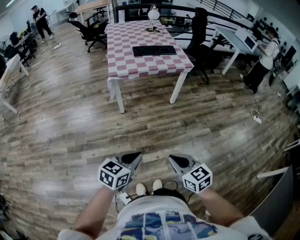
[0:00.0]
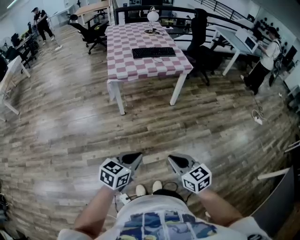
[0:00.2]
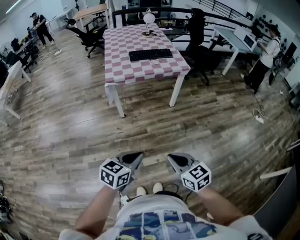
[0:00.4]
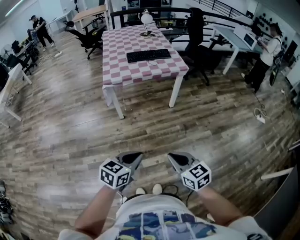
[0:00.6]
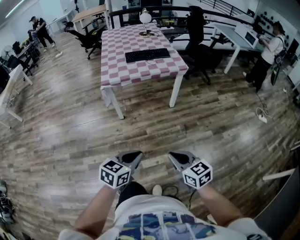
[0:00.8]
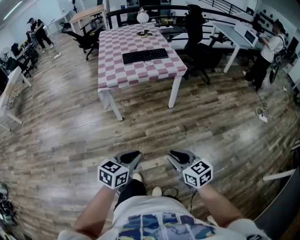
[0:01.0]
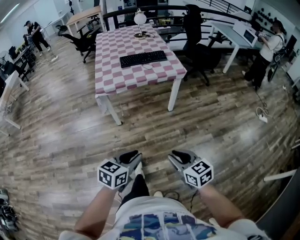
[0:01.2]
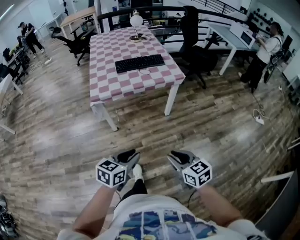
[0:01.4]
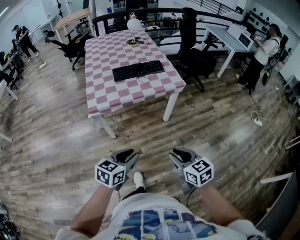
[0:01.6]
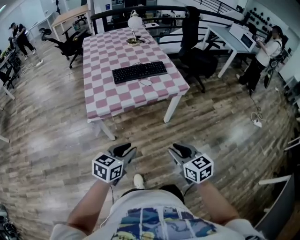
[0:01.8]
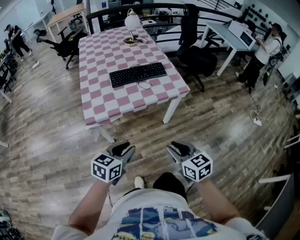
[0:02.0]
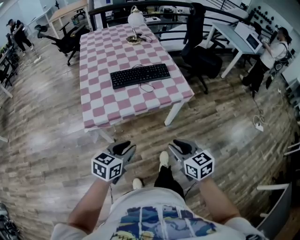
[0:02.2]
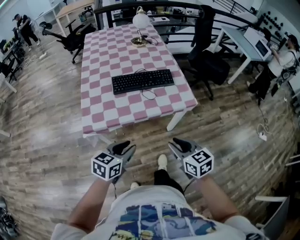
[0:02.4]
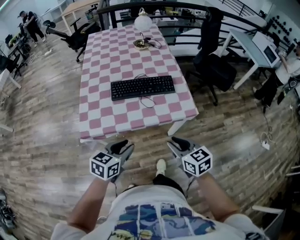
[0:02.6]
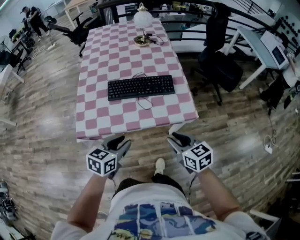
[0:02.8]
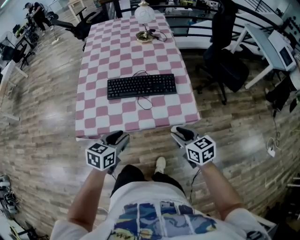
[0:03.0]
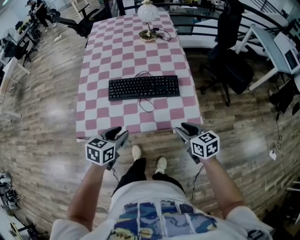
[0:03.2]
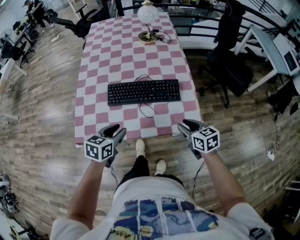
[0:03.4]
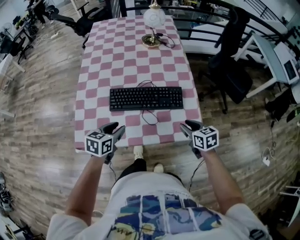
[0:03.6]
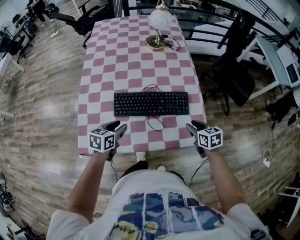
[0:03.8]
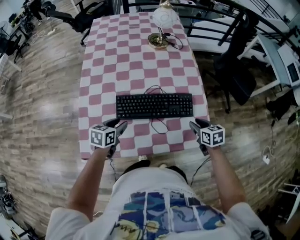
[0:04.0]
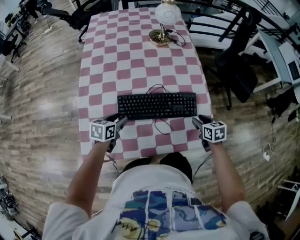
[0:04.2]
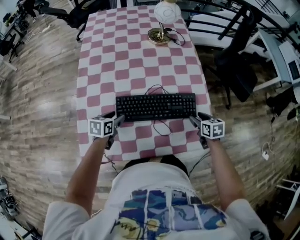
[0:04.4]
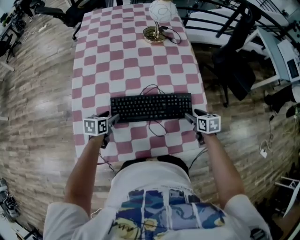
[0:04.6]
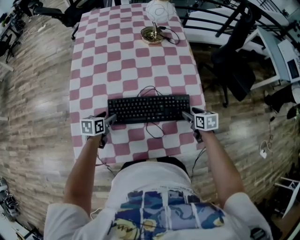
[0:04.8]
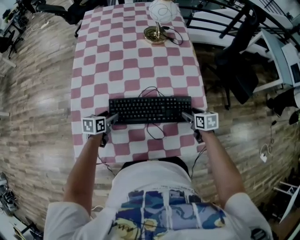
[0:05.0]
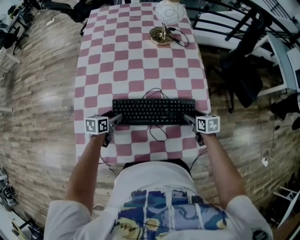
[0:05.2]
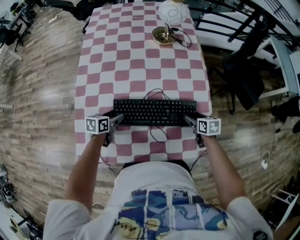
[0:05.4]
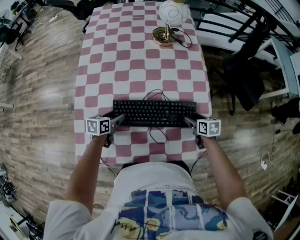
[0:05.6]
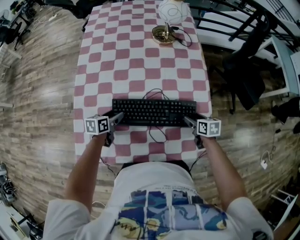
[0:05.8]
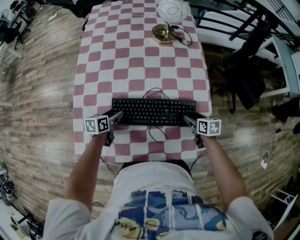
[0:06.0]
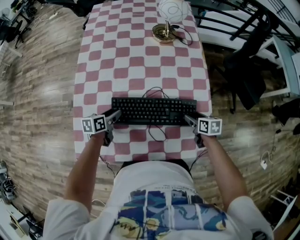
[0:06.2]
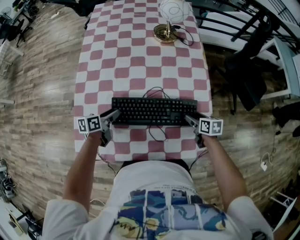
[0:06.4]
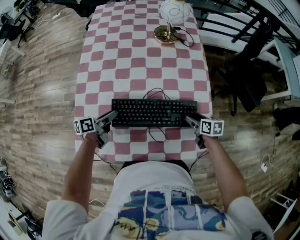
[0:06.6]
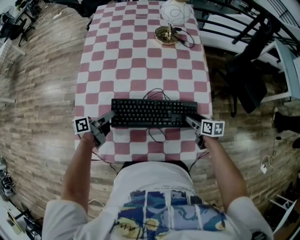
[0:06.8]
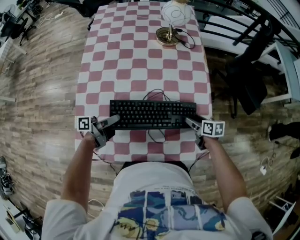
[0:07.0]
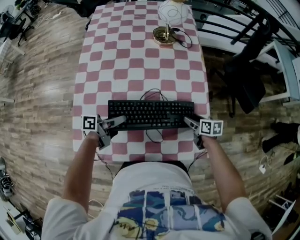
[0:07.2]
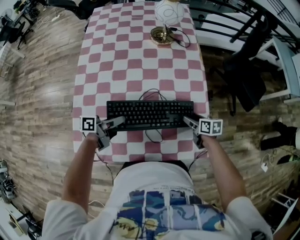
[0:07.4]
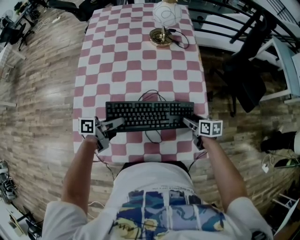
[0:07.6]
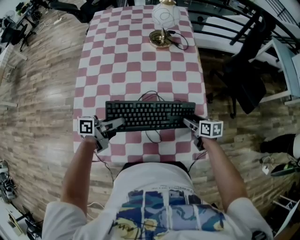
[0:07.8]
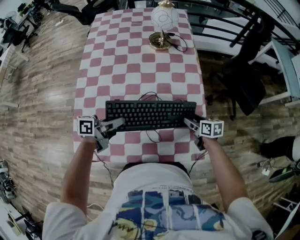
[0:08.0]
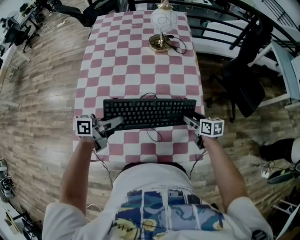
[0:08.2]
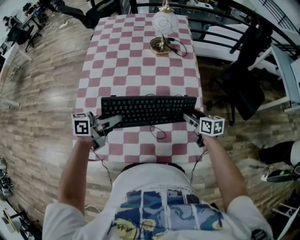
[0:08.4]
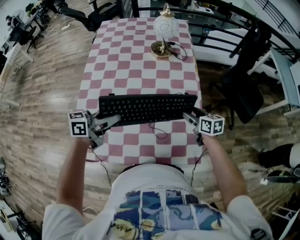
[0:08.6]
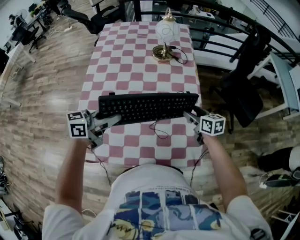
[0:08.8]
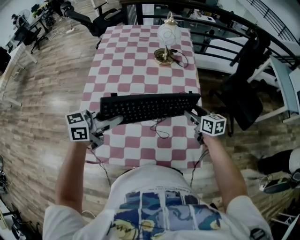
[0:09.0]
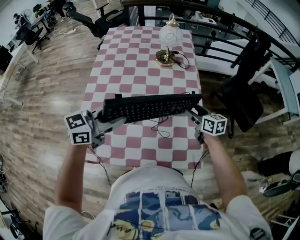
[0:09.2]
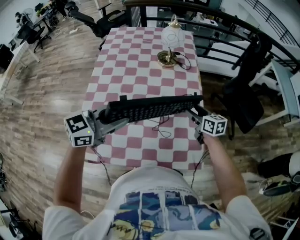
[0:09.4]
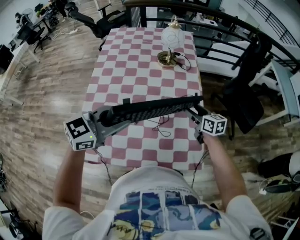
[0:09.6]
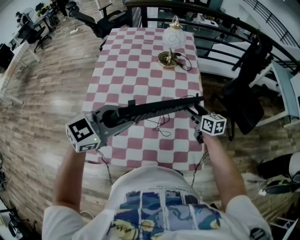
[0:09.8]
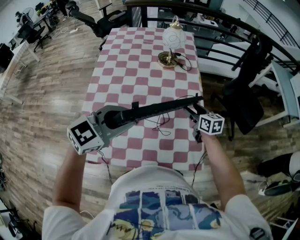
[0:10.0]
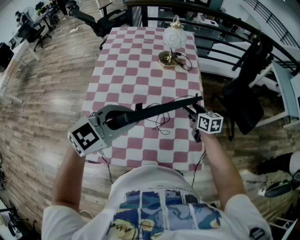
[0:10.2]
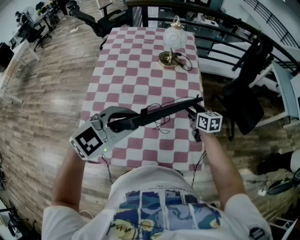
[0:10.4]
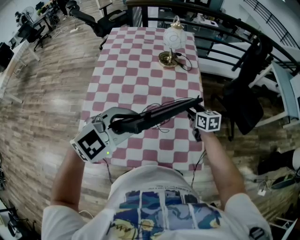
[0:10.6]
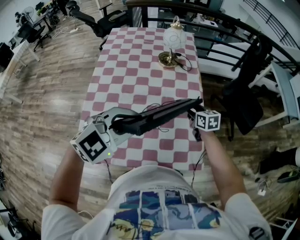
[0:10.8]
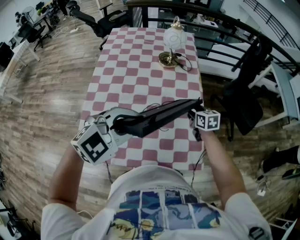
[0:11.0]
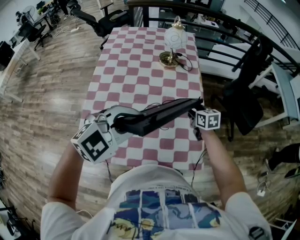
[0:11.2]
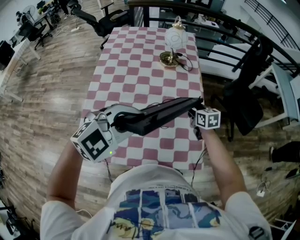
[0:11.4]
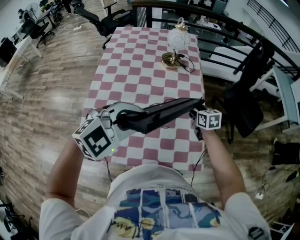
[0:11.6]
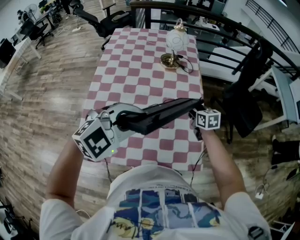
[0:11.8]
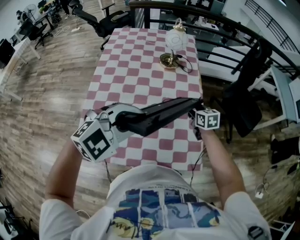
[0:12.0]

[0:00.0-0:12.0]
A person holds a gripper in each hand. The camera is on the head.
0:00.0 to 0:01.6: The grippers both shift forward by approximately 35 cm.
0:01.6 to 0:03.0: Both grippers are carried forward, approximately 50 cm.
0:03.0 to 0:04.4: The right gripper is displaced forward and downward by roughly 30 cm, and swivels roughly 20 degrees; the left gripper travels forward, to the left and downward by some 35 cm.
0:04.4 to 0:06.0: The right gripper is displaced forward by some 5 cm.
0:06.0 to 0:07.6: The left gripper is displaced upward and to the right by approximately 10 cm, rotates about 40 degrees, and closes its fingers.
0:07.6 to 0:09.0: The left gripper moves upward, approximately 20 cm, and rotates around the line of its fingers by roughly 40 degrees, clockwise from behind. Meanwhile the right gripper heads upward and forward, covering roughly 15 cm, and turns by roughly 20 degrees.
0:09.0 to 0:10.4: The left gripper moves upward and to the right, some 10 cm, and rolls clockwise, seen from behind, by about 40 degrees.
0:10.4 to 0:12.0: There are only small adjustments of the grippers.

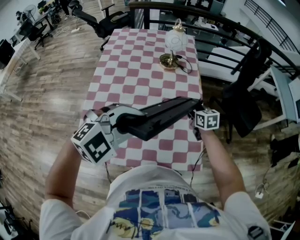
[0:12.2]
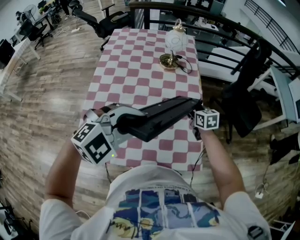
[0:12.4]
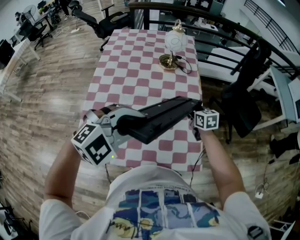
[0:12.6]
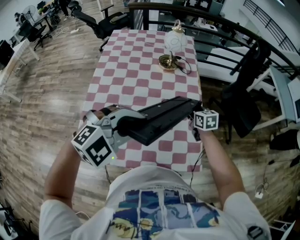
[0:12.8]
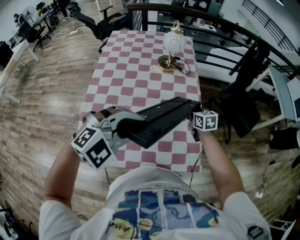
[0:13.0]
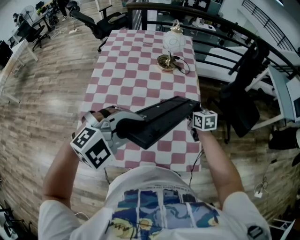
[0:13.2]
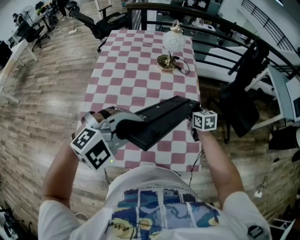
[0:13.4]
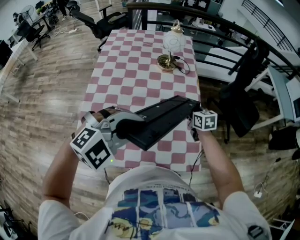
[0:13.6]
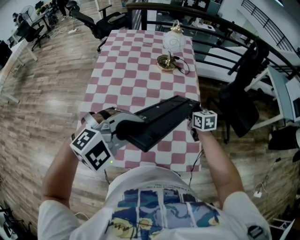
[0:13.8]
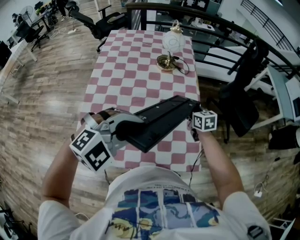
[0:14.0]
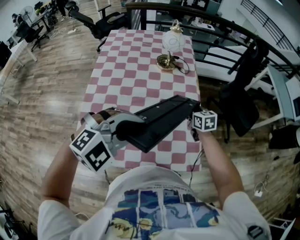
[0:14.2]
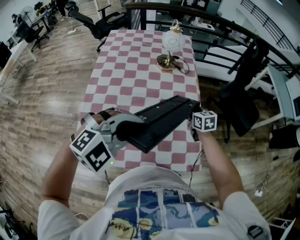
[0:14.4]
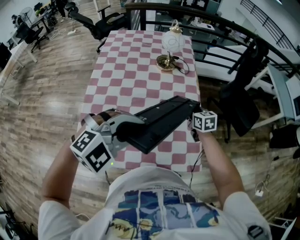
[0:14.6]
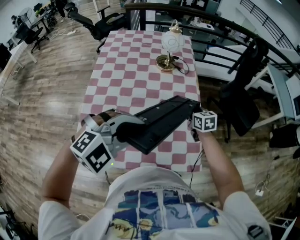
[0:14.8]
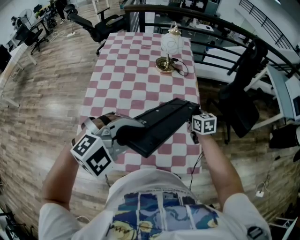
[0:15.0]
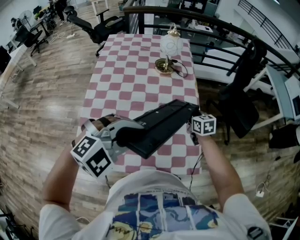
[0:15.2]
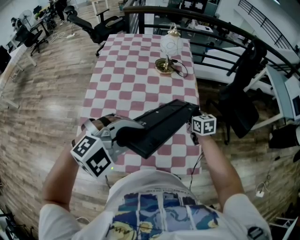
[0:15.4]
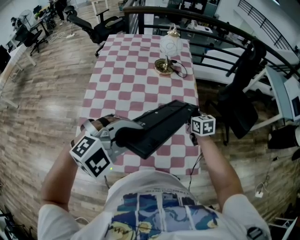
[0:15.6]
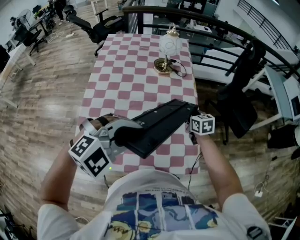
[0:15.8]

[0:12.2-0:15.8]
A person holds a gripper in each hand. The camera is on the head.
0:12.2 to 0:14.0: The grippers make only small movements.
0:14.0 to 0:15.8: Both grippers stay about where they are.

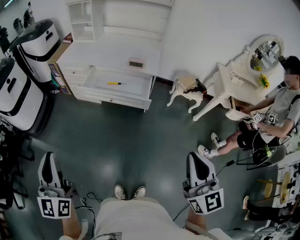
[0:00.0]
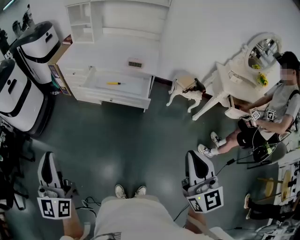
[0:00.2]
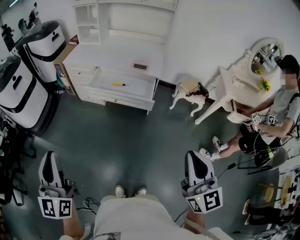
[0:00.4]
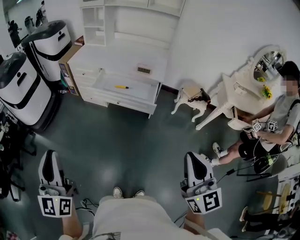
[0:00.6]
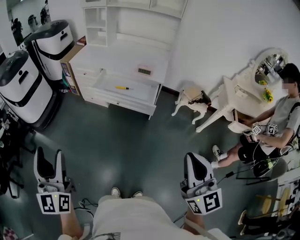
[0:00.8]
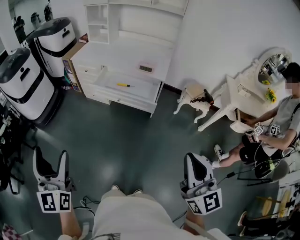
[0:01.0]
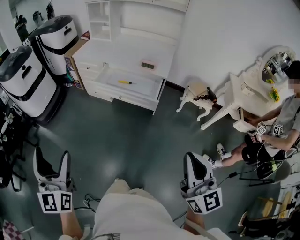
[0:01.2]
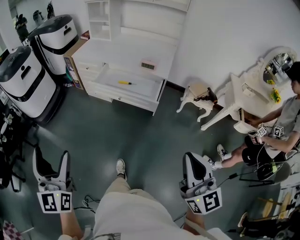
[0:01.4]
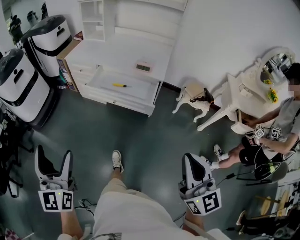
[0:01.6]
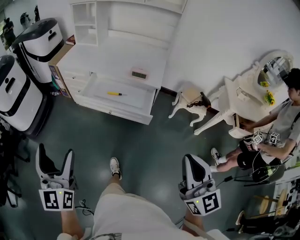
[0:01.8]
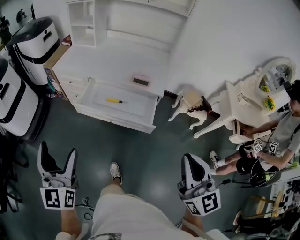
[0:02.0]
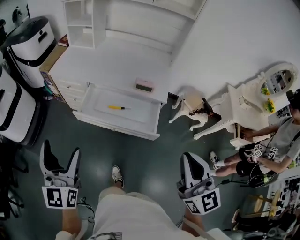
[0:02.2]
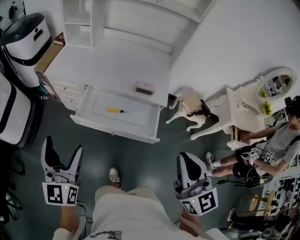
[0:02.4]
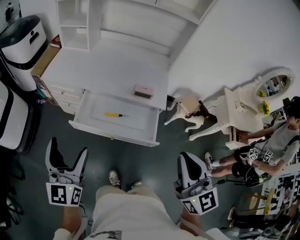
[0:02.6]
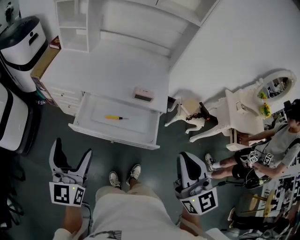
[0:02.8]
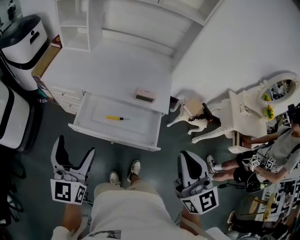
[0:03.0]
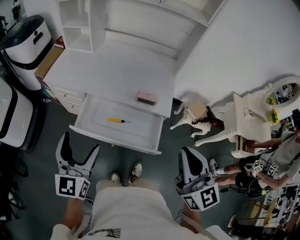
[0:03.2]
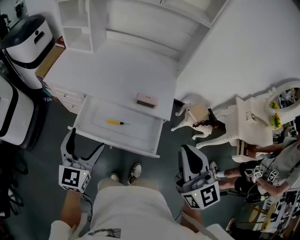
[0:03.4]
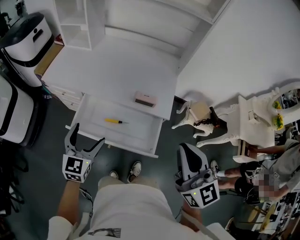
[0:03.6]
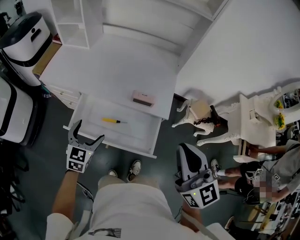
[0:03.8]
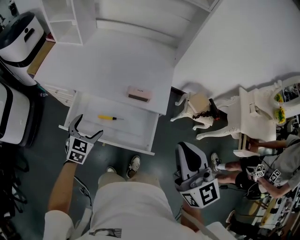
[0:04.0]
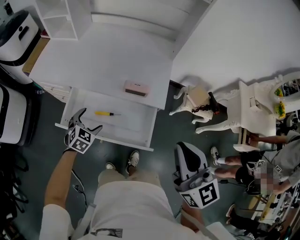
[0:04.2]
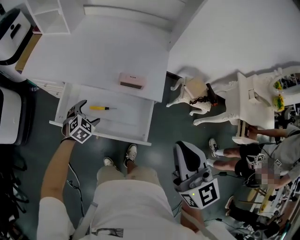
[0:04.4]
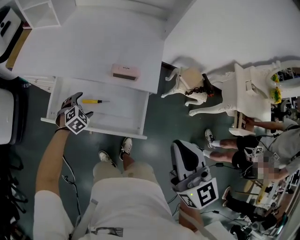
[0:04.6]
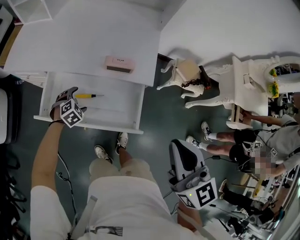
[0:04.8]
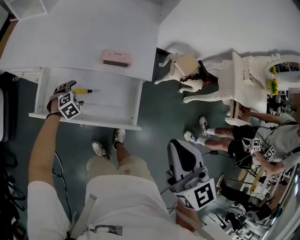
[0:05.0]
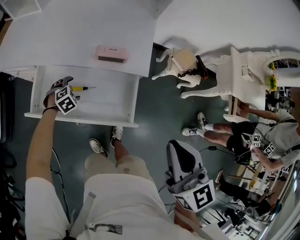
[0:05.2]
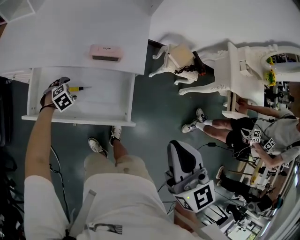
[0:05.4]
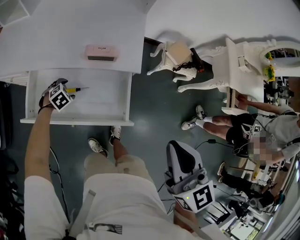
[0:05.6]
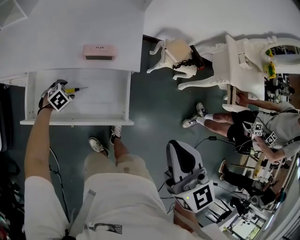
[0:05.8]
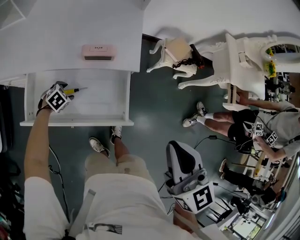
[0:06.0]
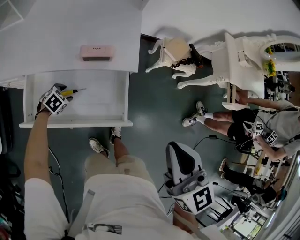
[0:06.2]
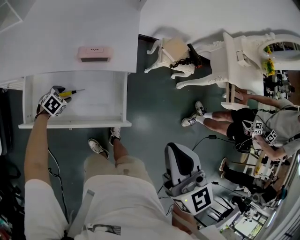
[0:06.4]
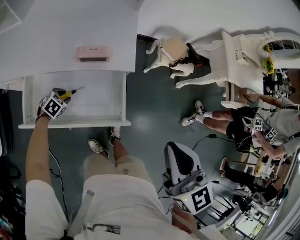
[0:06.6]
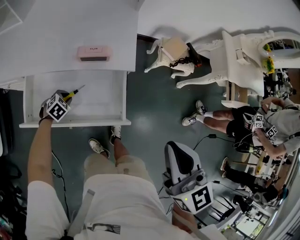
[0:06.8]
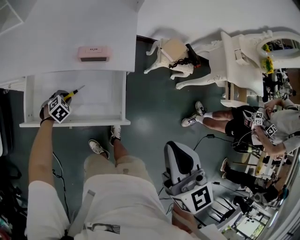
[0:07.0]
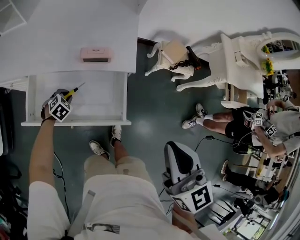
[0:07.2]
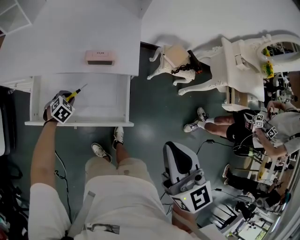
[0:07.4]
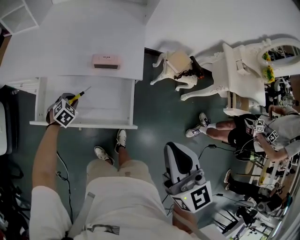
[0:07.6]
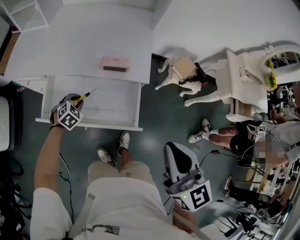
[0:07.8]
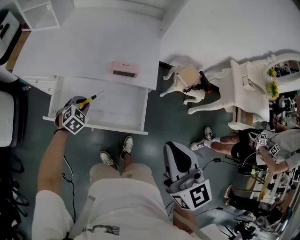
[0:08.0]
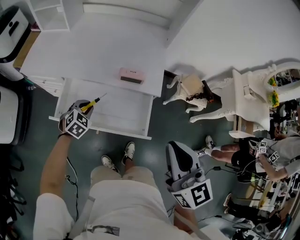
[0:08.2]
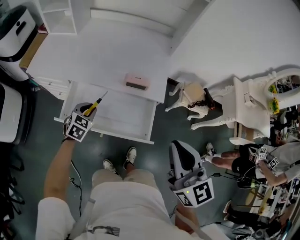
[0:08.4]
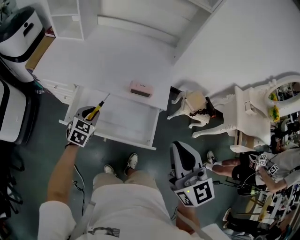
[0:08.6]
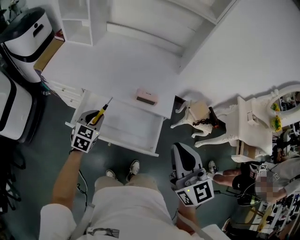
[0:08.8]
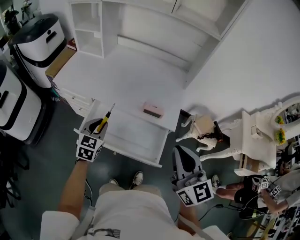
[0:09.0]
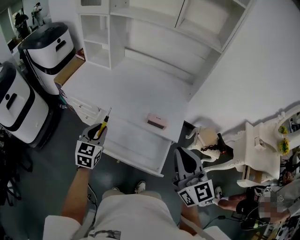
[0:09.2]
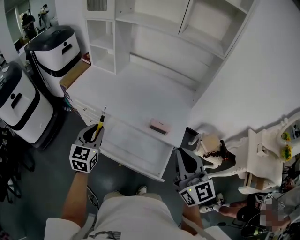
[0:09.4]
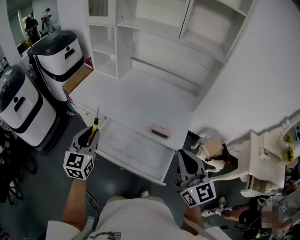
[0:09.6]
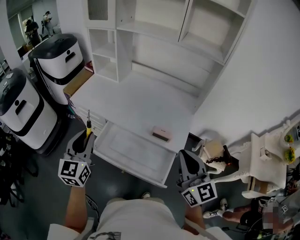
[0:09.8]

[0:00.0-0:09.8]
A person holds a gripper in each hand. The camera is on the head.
0:00.0 to 0:01.4: The left gripper moves roughly 5 cm, and opens.
0:01.4 to 0:02.8: The two grippers travel together, forward, roughly 40 cm. The left gripper swivels some 20 degrees.
0:02.8 to 0:04.2: The right gripper goes about 15 cm forward, to the right and downward. The left gripper goes about 40 cm downward, forward and to the right, and points its fingers some 50 degrees further downward.
0:04.2 to 0:05.6: The left gripper goes some 20 cm downward, and changes its angle by approximately 40 degrees; the right gripper shifts approximately 5 cm downward.
0:05.6 to 0:07.0: The left gripper closes its fingers.
0:07.0 to 0:08.4: The right gripper shifts about 10 cm to the left and upward. Meanwhile the left gripper goes some 20 cm upward, and rotates roughly 40 degrees.
0:08.4 to 0:09.8: The left gripper shifts approximately 30 cm upward, and tilts its fingers approximately 40 degrees upward; the right gripper shifts approximately 10 cm forward and upward.
